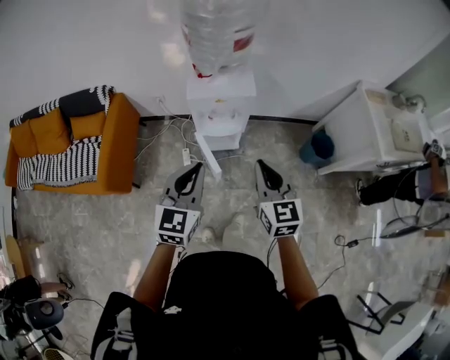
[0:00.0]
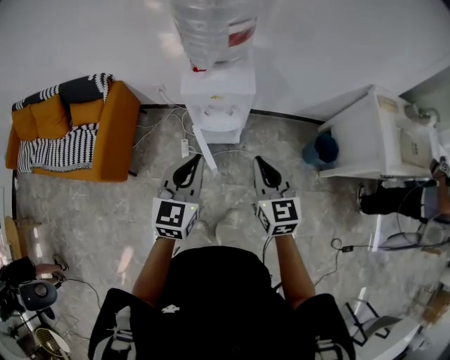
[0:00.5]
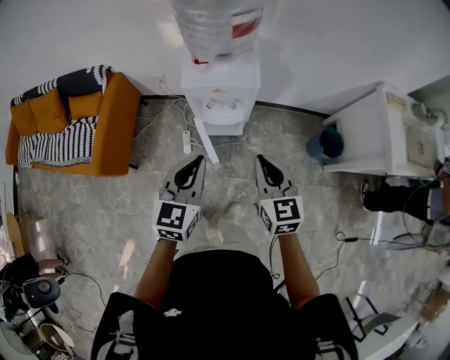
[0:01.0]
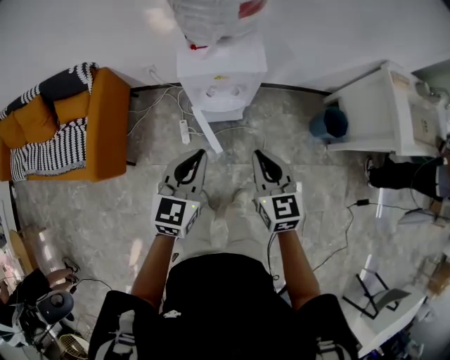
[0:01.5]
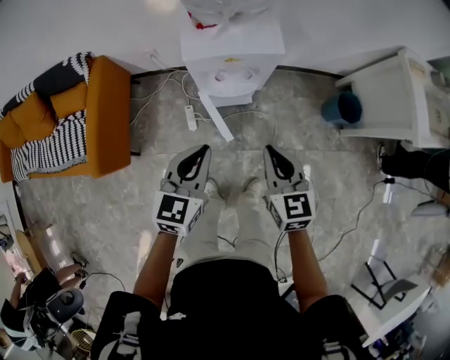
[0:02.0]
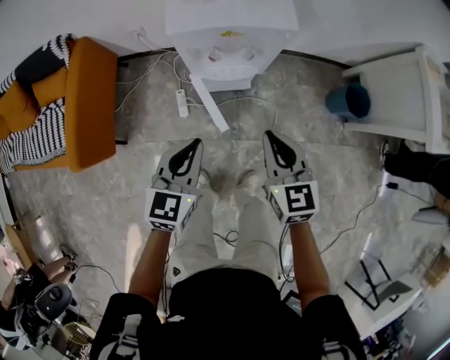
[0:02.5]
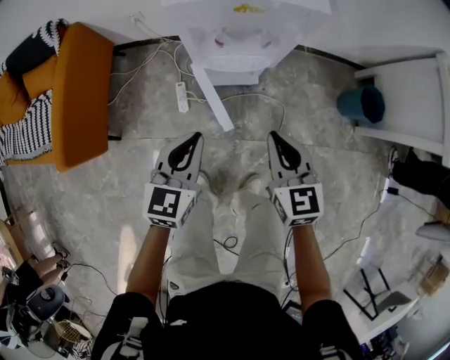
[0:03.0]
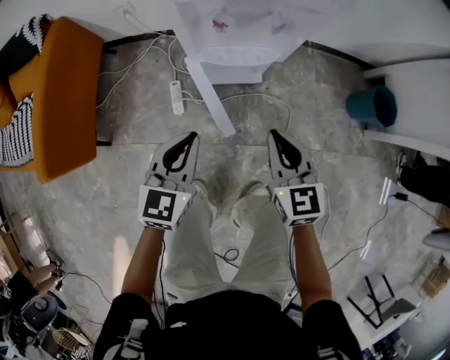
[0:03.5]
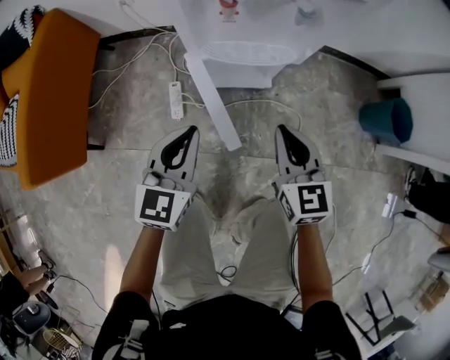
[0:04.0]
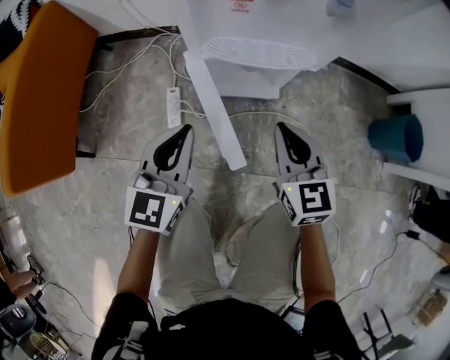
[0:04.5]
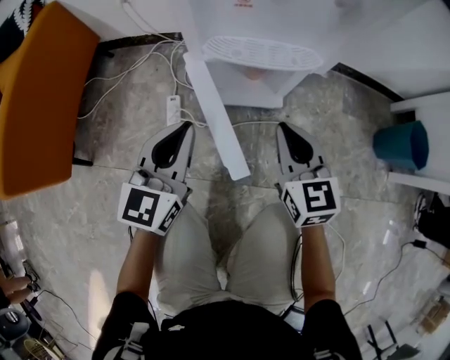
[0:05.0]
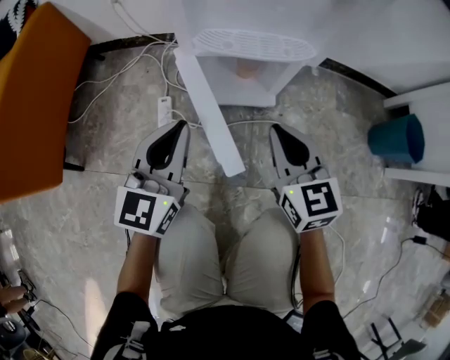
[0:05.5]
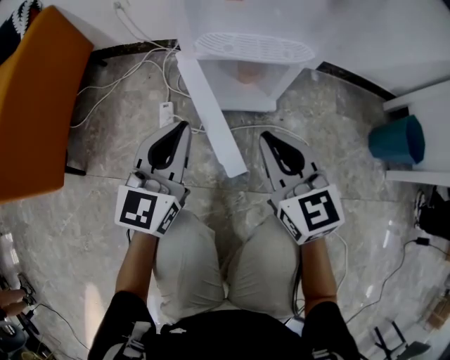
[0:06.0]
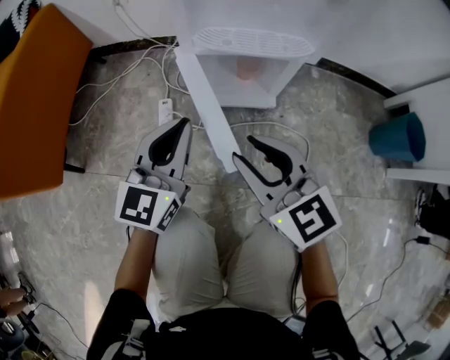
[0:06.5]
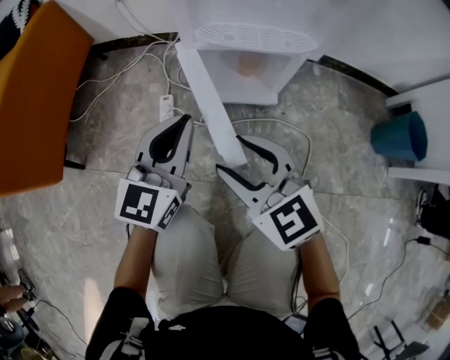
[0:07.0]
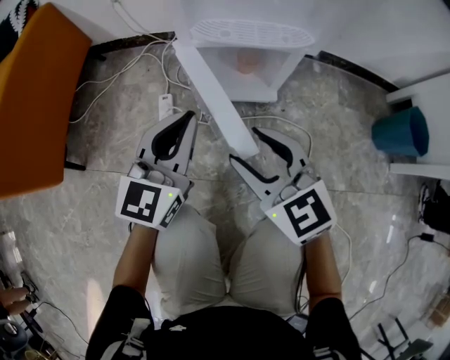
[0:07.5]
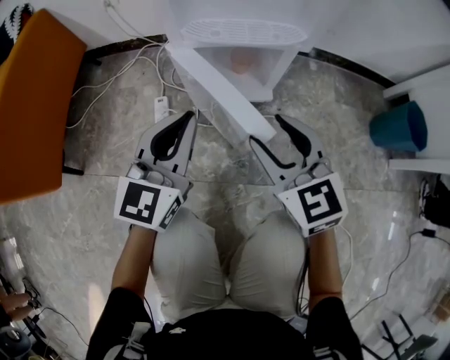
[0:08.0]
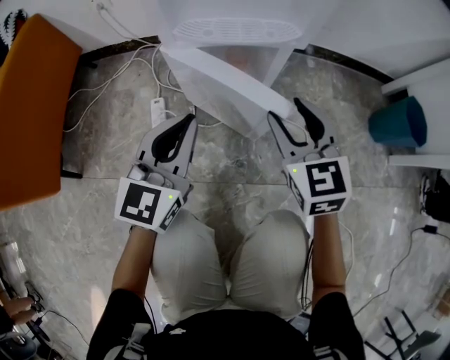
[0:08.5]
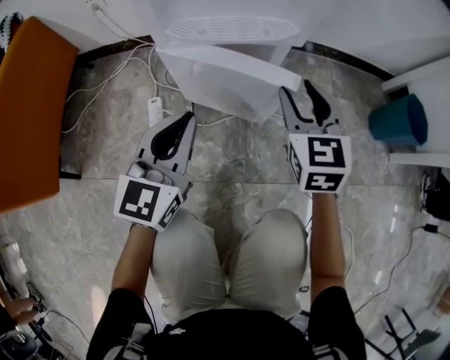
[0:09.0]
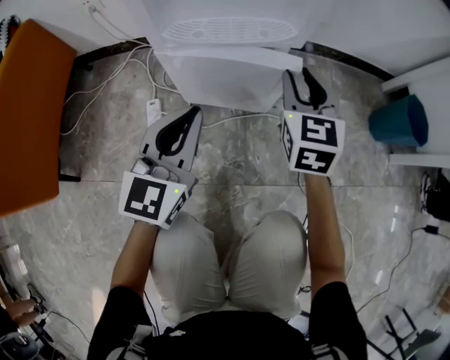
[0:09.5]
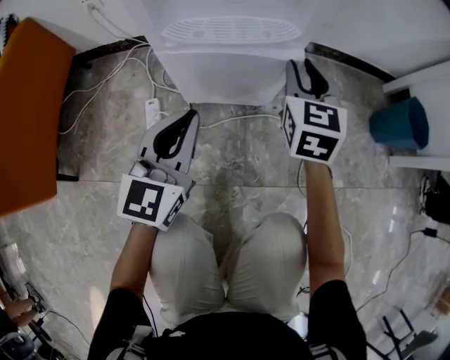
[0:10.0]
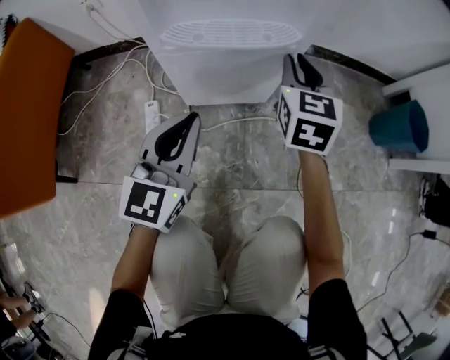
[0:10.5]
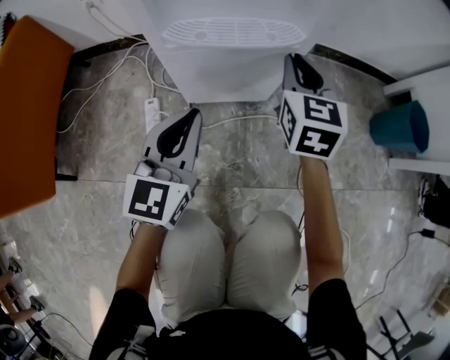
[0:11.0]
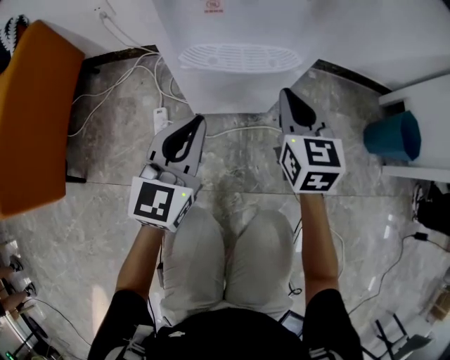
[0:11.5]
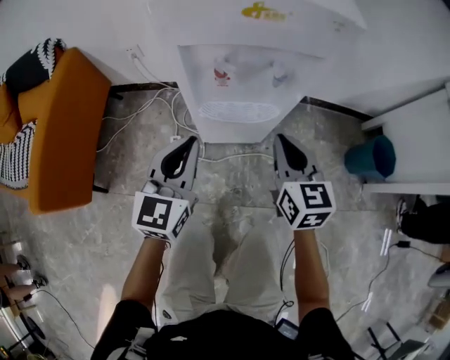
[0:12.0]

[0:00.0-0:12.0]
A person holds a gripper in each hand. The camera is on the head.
0:00.0 to 0:02.0: The right gripper heads downward, covering roughly 15 cm; the left gripper travels downward and forward by some 15 cm.
0:02.0 to 0:04.0: The two grippers go roughly 40 cm downward.
0:04.0 to 0:06.0: The grippers both shift downward by roughly 10 cm.
0:06.0 to 0:08.0: The right gripper goes to the left and returns, approximately 5 cm each way, and opens.
0:08.0 to 0:10.0: The right gripper travels forward and to the right by some 20 cm, turns by about 30 degrees, and closes.
0:10.0 to 0:12.0: The right gripper moves upward and backward, approximately 20 cm, swivels about 20 degrees, and closes its fingers. The left gripper goes approximately 20 cm upward.

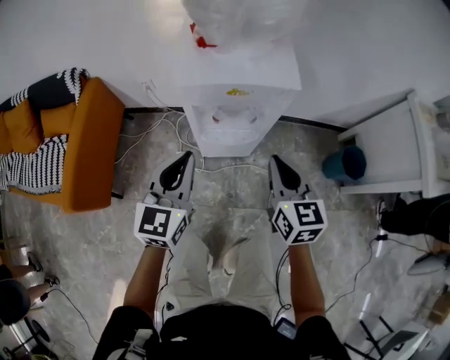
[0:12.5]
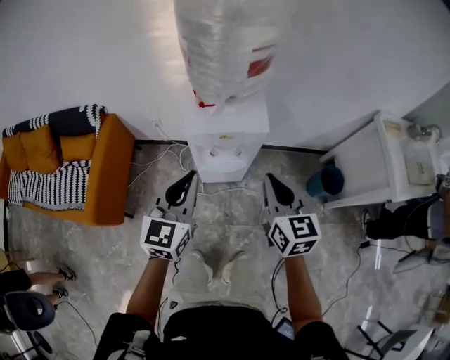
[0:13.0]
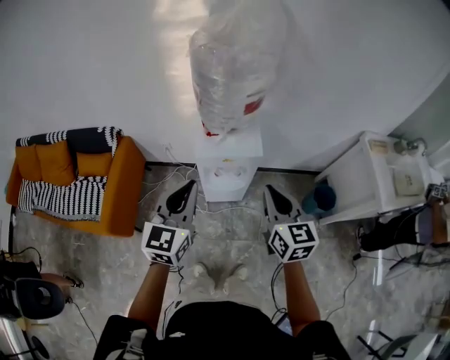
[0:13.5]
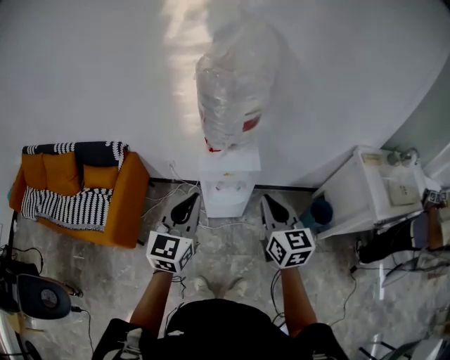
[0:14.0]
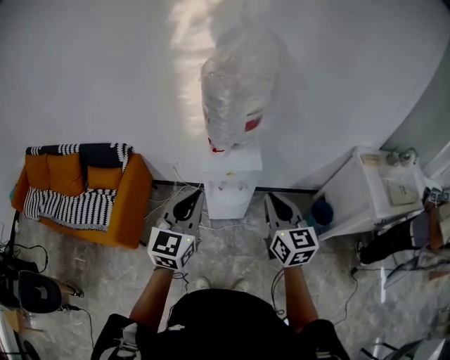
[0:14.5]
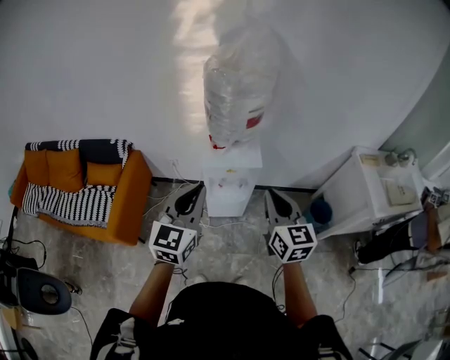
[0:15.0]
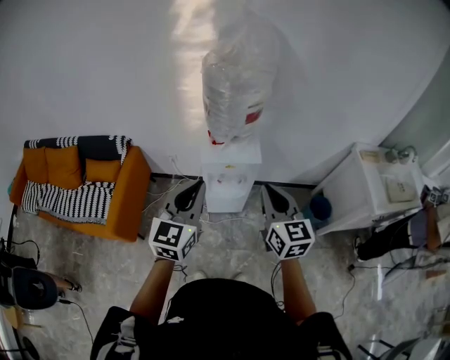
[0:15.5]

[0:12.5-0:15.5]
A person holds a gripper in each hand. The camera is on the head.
0:12.5 to 0:14.0: The two grippers go roughly 35 cm upward.
0:14.0 to 0:15.5: The grippers move only a little.

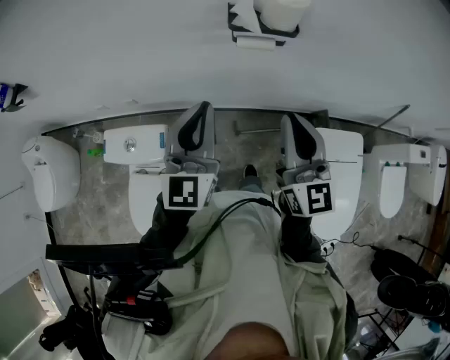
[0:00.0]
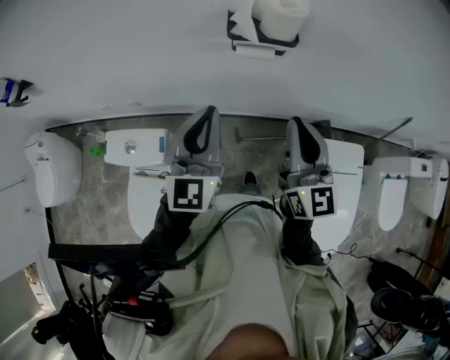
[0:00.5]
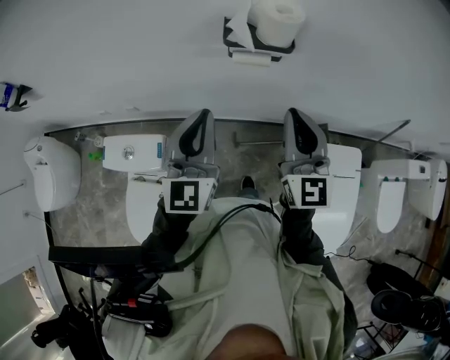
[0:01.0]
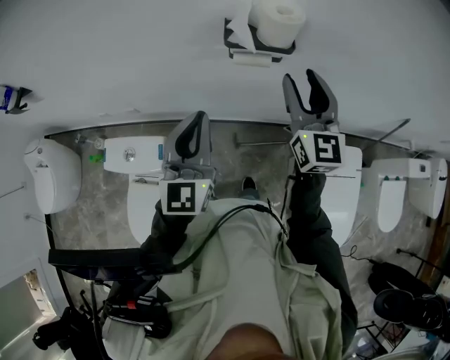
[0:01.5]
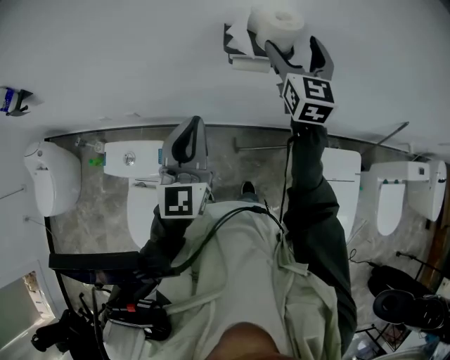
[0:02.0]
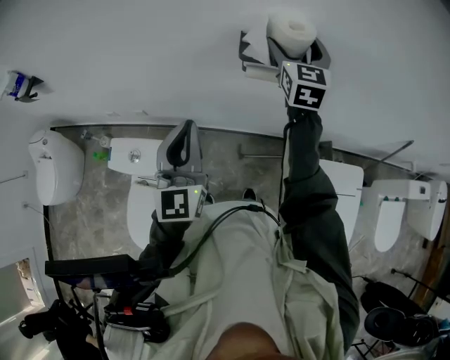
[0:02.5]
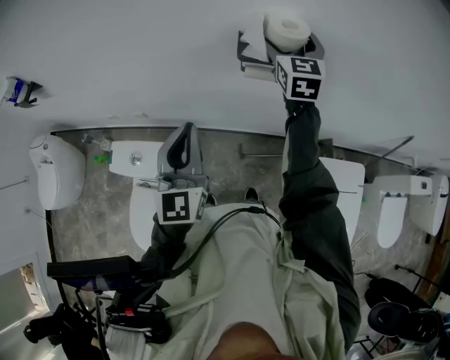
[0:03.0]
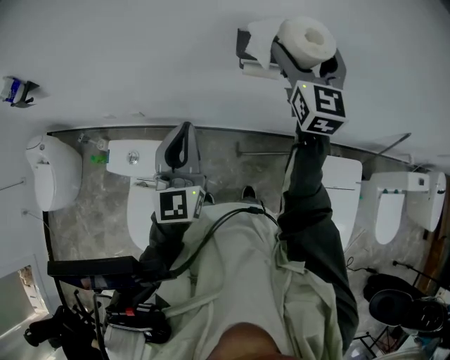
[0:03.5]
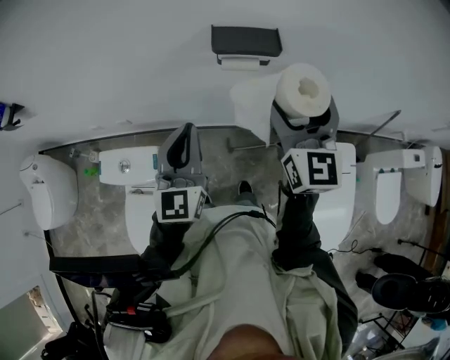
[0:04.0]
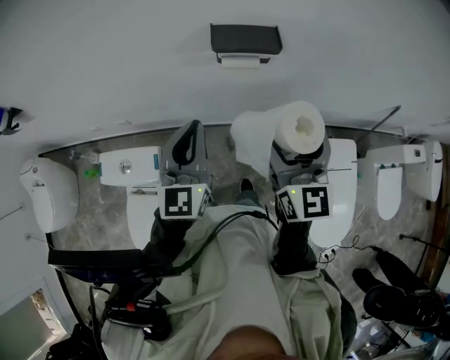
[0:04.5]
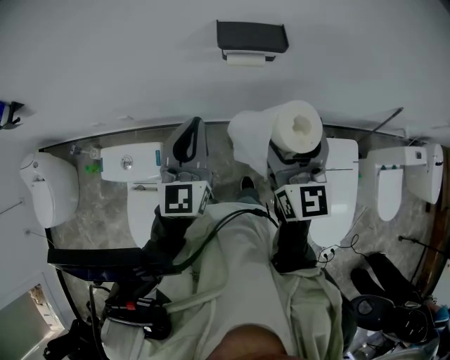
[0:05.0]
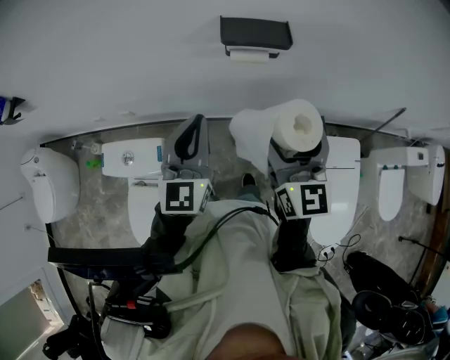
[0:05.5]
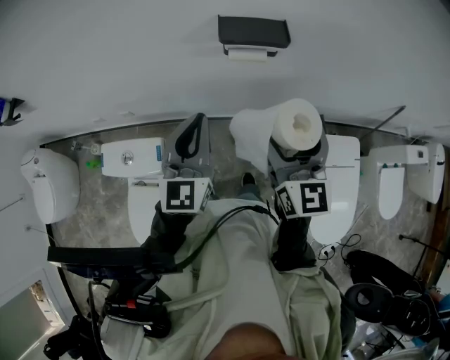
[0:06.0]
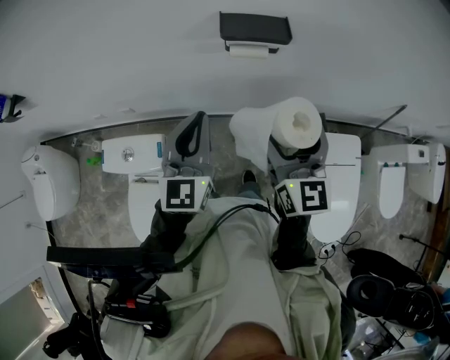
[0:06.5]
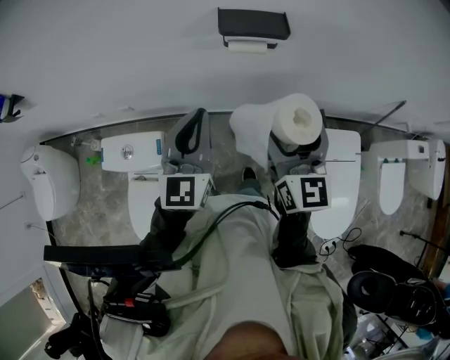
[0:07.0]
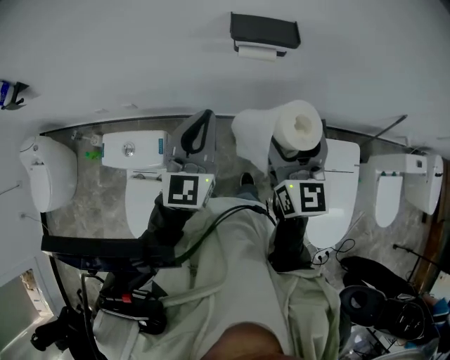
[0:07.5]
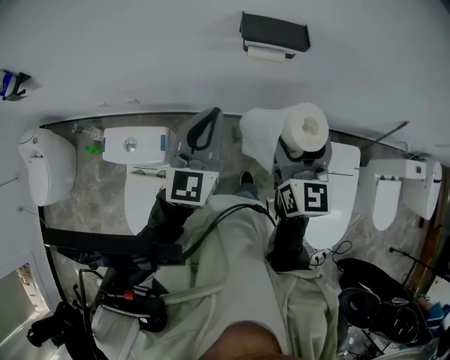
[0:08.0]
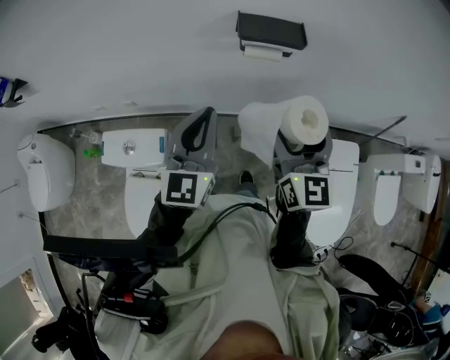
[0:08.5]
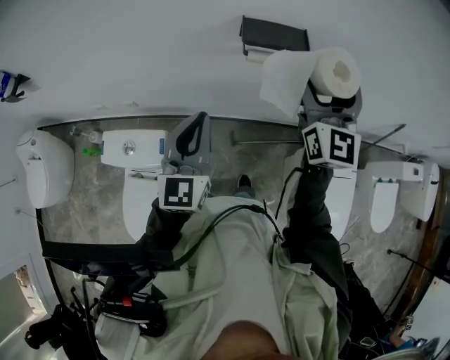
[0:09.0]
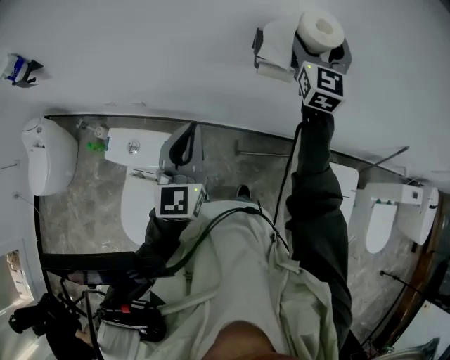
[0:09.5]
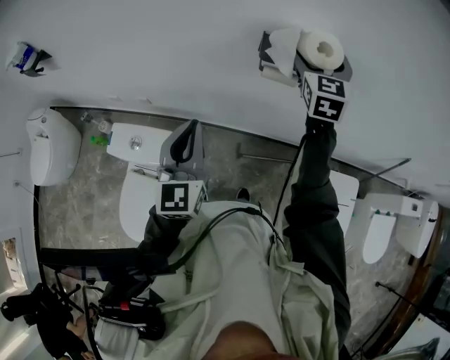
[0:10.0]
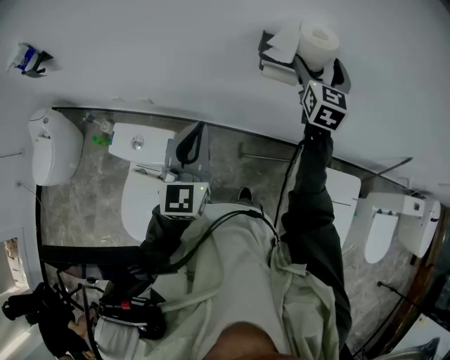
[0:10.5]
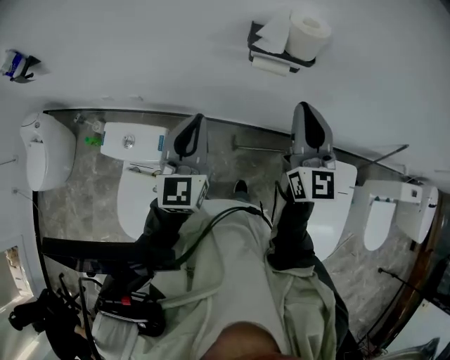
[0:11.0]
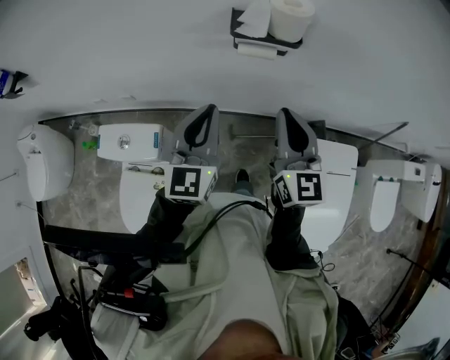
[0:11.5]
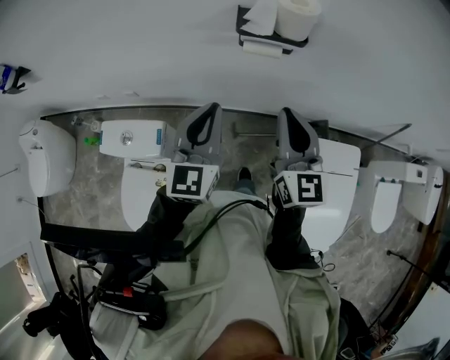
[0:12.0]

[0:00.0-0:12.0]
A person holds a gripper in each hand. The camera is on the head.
0:00.0 to 0:02.0: The right gripper travels forward by approximately 25 cm, and opens.
0:02.0 to 0:04.0: The right gripper travels backward by approximately 15 cm.
0:04.0 to 0:06.0: The right gripper goes roughly 10 cm backward and downward.
0:06.0 to 0:08.0: The grippers stay close to where they were, moving slightly.
0:08.0 to 0:10.0: The left gripper is displaced to the left by approximately 5 cm. Meanwhile the right gripper travels forward by roughly 25 cm, and turns by about 20 degrees.
0:10.0 to 0:12.0: The left gripper goes roughly 10 cm to the right. Meanwhile the right gripper is displaced backward by about 25 cm, swivels roughly 20 degrees, and closes.
